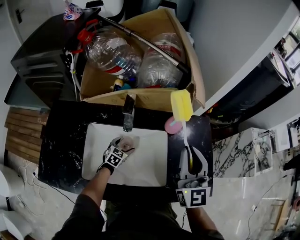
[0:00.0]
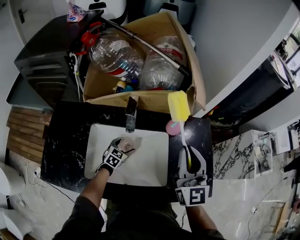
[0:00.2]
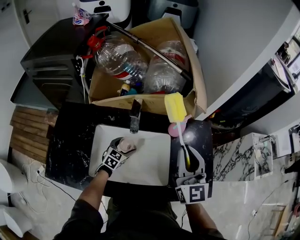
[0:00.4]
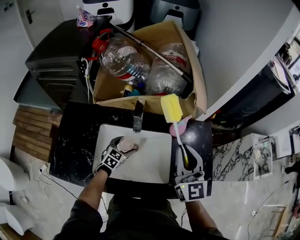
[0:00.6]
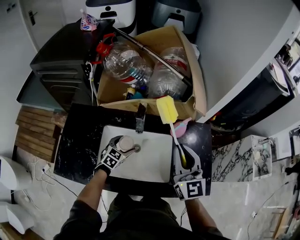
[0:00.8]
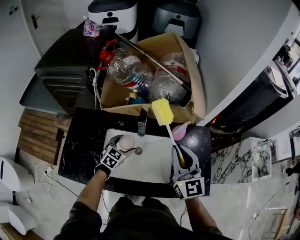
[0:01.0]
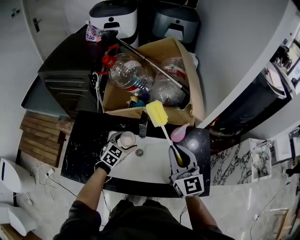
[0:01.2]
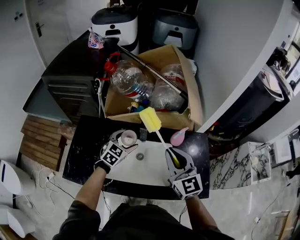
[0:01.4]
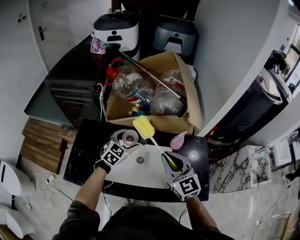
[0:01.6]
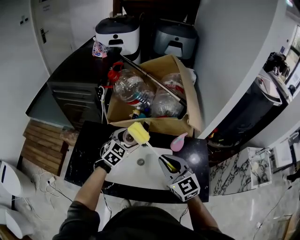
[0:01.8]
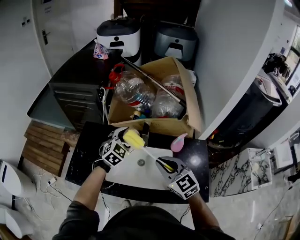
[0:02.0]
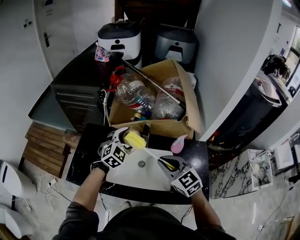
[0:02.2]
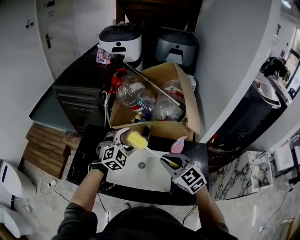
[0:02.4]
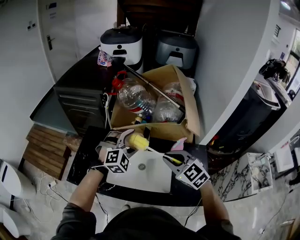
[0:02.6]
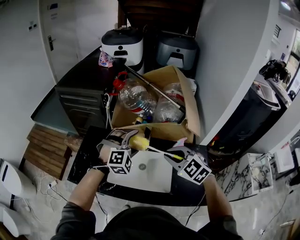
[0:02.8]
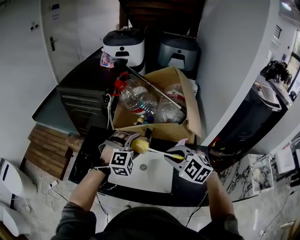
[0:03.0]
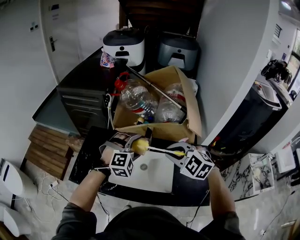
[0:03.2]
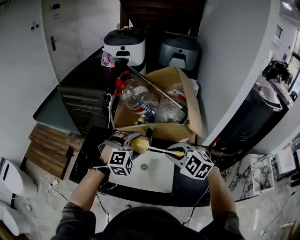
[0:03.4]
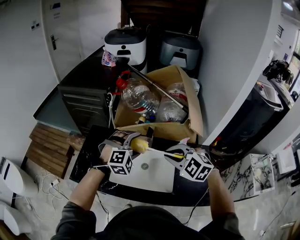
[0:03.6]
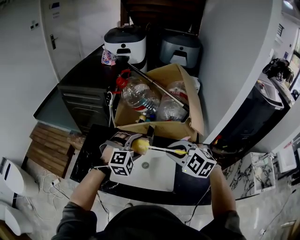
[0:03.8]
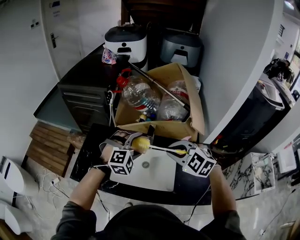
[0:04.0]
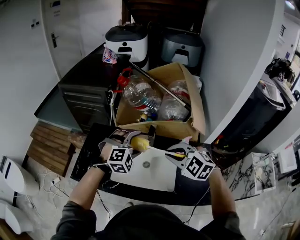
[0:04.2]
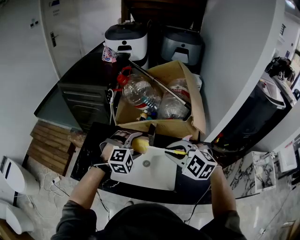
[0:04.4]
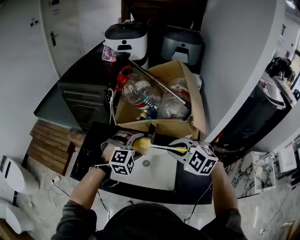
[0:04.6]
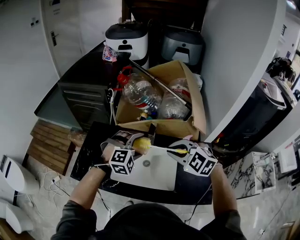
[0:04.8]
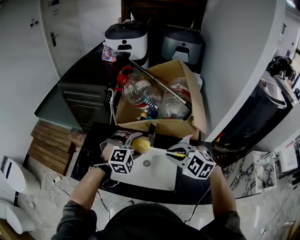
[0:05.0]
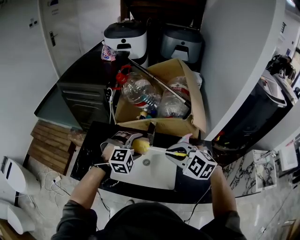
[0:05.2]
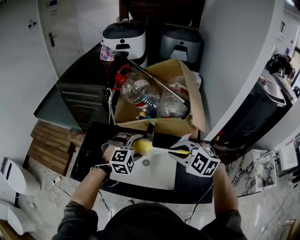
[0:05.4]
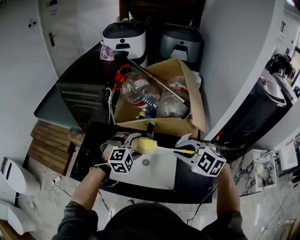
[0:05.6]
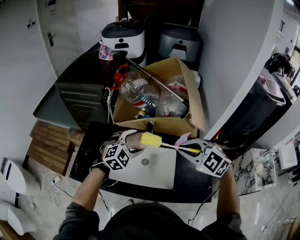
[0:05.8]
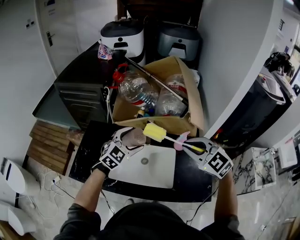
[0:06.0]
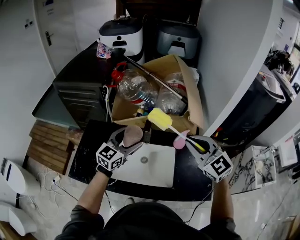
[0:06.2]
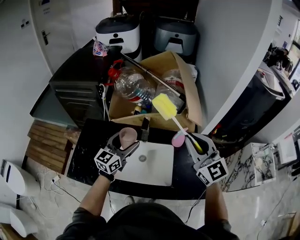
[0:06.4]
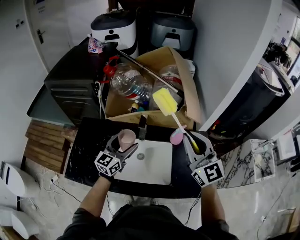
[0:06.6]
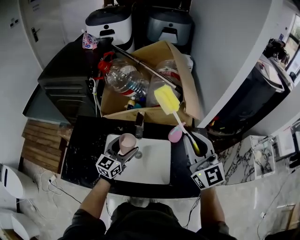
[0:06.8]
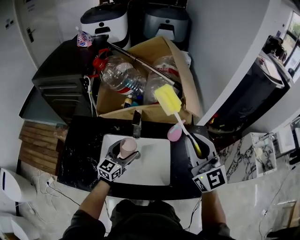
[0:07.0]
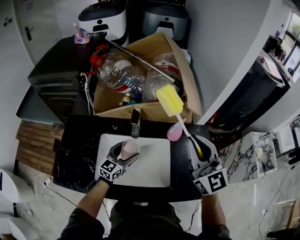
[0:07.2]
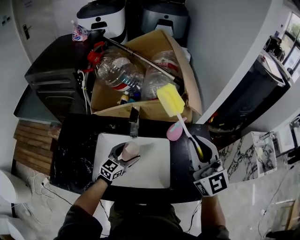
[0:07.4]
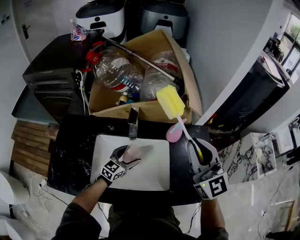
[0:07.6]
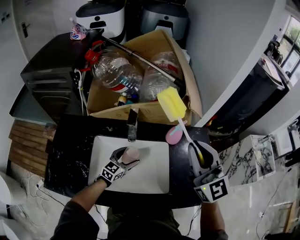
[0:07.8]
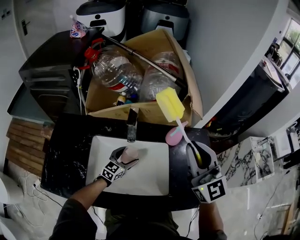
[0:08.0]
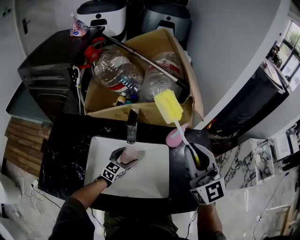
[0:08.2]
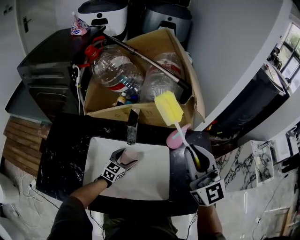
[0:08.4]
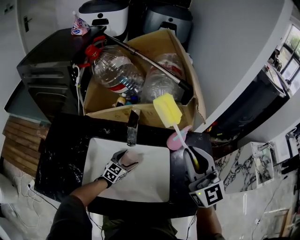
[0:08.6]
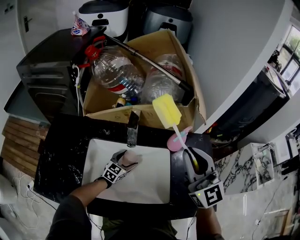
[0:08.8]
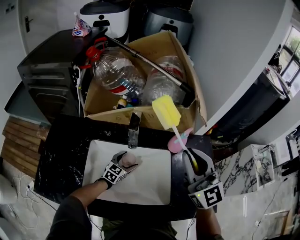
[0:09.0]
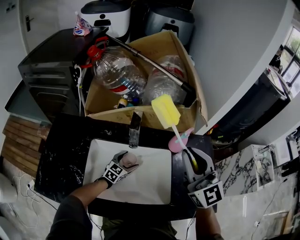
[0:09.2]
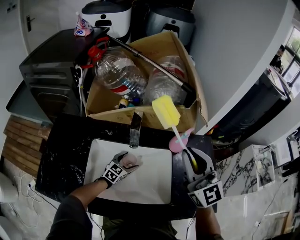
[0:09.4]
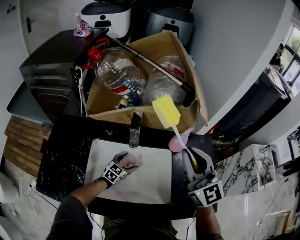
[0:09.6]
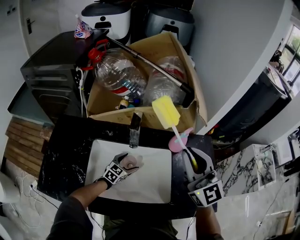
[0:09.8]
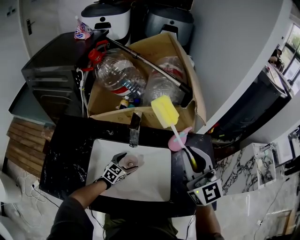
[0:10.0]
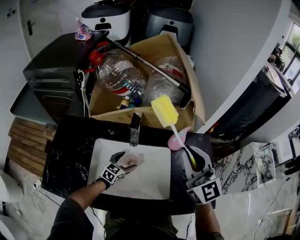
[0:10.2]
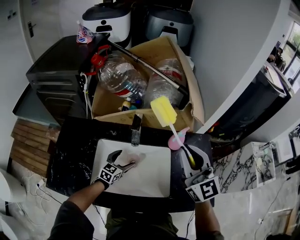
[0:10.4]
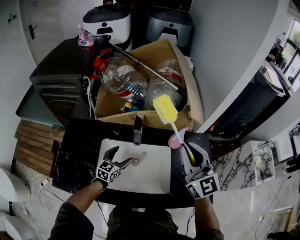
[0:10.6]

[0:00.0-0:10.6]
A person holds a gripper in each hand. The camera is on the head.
0:00.0 to 0:01.6: The left gripper shifts roughly 35 cm upward. Meanwhile the right gripper travels to the left and upward by some 15 cm, and changes its angle by approximately 30 degrees.
0:01.6 to 0:03.0: The left gripper shifts approximately 10 cm upward and backward, and rolls clockwise, seen from behind, by roughly 50 degrees; the right gripper swivels about 40 degrees.
0:03.0 to 0:04.6: The grippers make only small movements.
0:04.6 to 0:06.0: The left gripper turns by approximately 40 degrees. Meanwhile the right gripper goes about 5 cm to the right.
0:06.0 to 0:07.6: The right gripper moves some 5 cm, and angles its fingers upward, by roughly 30 degrees. Meanwhile the left gripper is displaced downward by approximately 25 cm, and turns by about 30 degrees.
0:07.6 to 0:09.0: The right gripper heads downward, covering roughly 5 cm; the left gripper is displaced downward and forward by roughly 15 cm.
0:09.0 to 0:10.6: The left gripper shifts roughly 15 cm upward and to the left. Meanwhile the right gripper shifts about 5 cm upward.

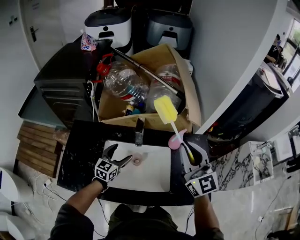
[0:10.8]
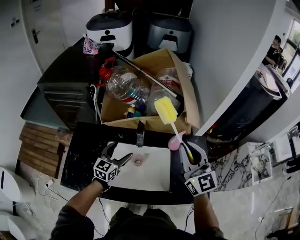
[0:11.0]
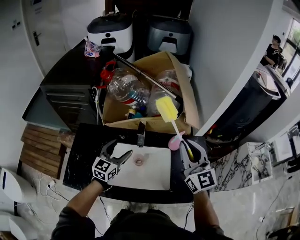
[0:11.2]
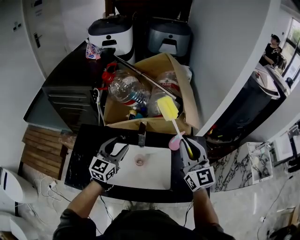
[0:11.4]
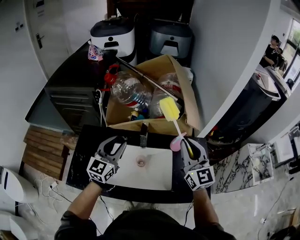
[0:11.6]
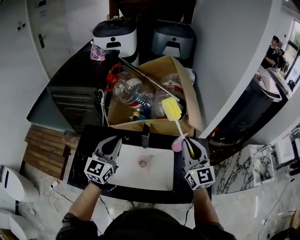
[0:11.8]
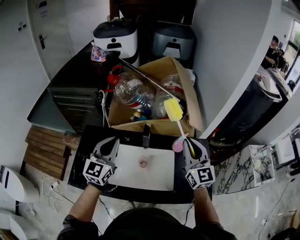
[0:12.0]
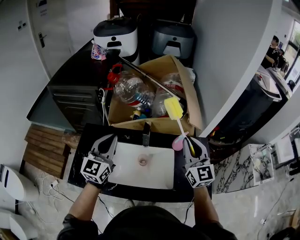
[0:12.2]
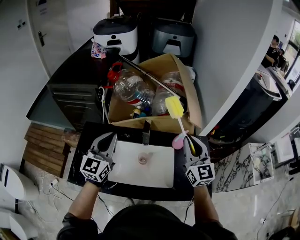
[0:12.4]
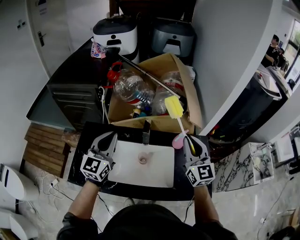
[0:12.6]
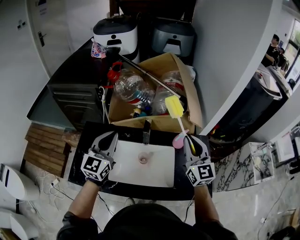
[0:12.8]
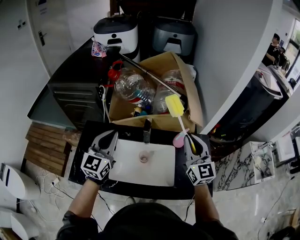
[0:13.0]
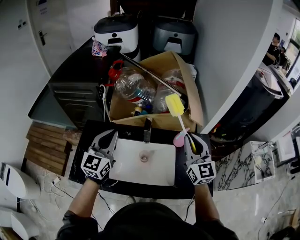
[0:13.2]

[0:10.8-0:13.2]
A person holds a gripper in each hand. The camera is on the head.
0:10.8 to 0:12.0: The left gripper shifts approximately 25 cm upward, turns by some 20 degrees, and closes up.
0:12.0 to 0:13.2: Both grippers stay put.

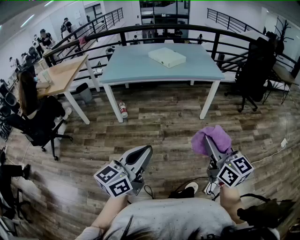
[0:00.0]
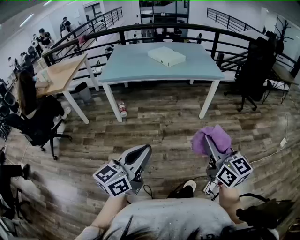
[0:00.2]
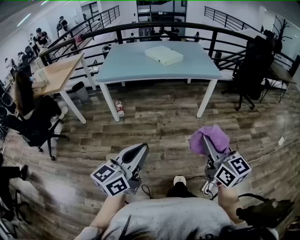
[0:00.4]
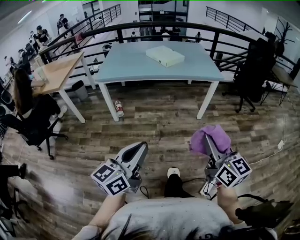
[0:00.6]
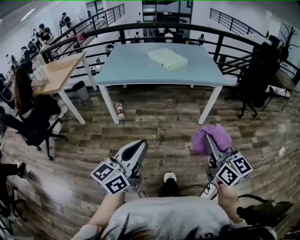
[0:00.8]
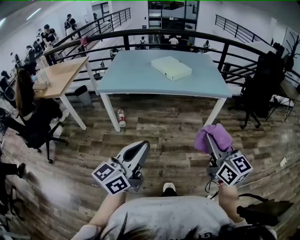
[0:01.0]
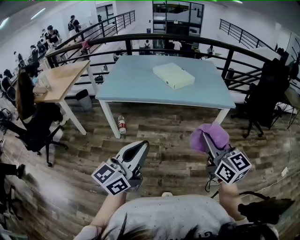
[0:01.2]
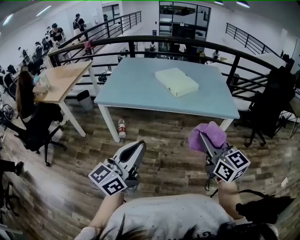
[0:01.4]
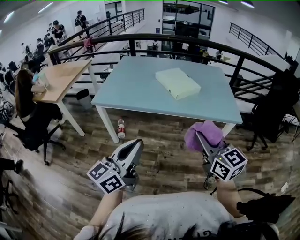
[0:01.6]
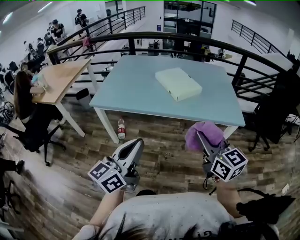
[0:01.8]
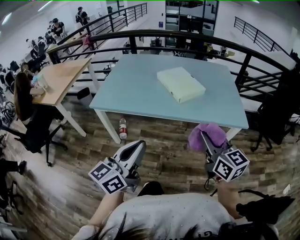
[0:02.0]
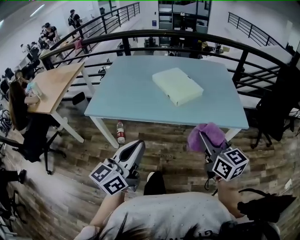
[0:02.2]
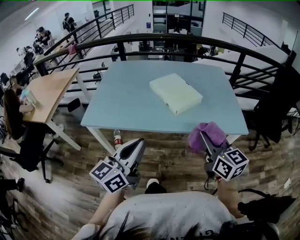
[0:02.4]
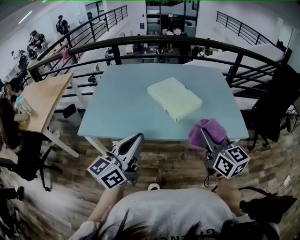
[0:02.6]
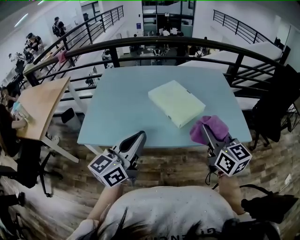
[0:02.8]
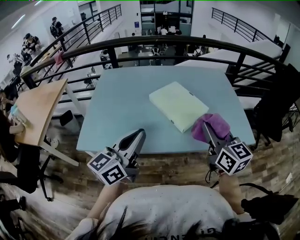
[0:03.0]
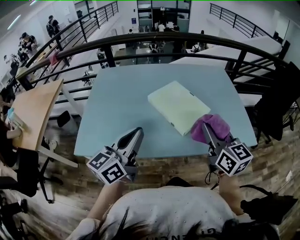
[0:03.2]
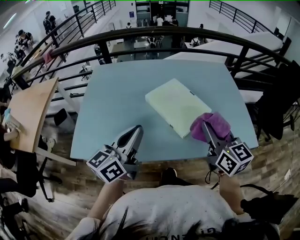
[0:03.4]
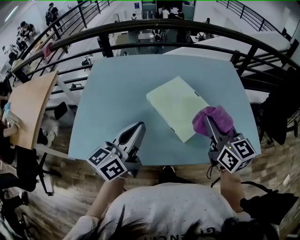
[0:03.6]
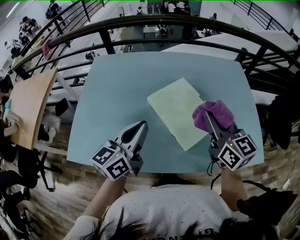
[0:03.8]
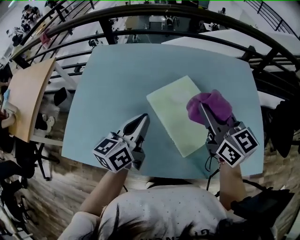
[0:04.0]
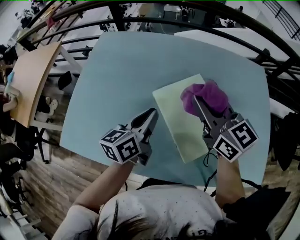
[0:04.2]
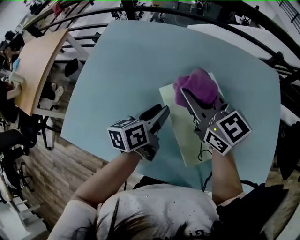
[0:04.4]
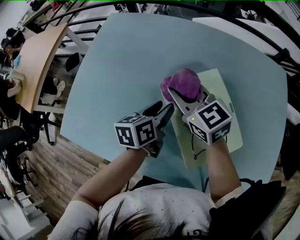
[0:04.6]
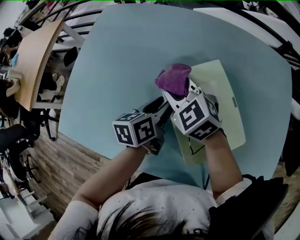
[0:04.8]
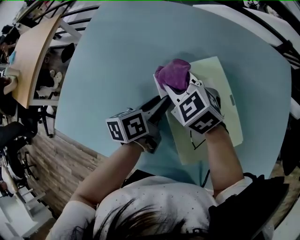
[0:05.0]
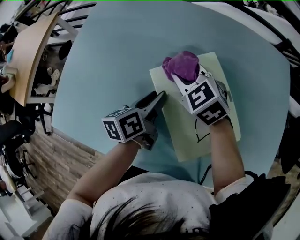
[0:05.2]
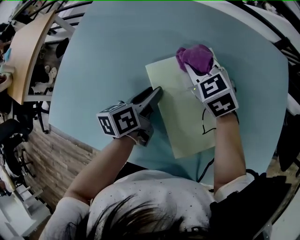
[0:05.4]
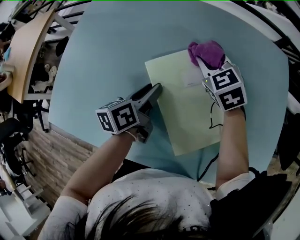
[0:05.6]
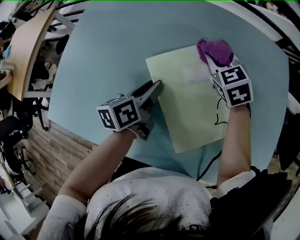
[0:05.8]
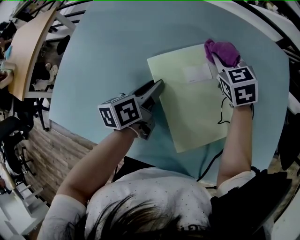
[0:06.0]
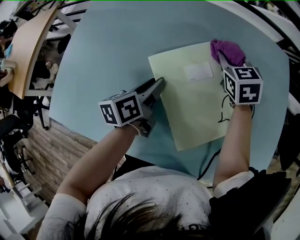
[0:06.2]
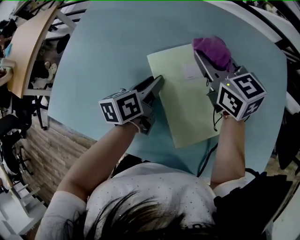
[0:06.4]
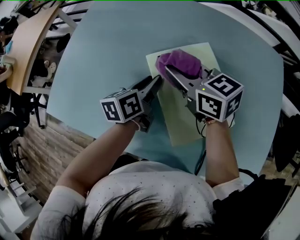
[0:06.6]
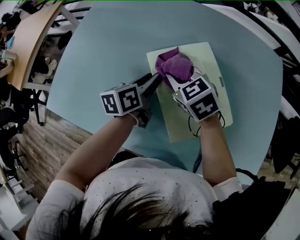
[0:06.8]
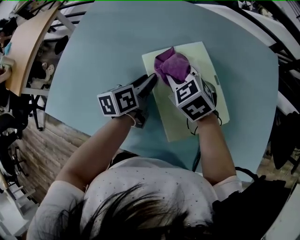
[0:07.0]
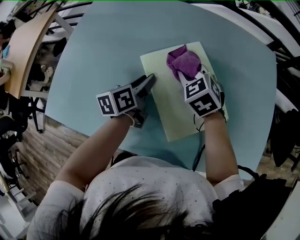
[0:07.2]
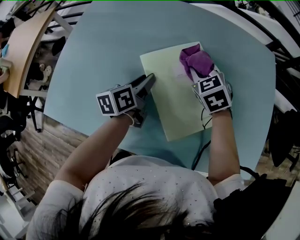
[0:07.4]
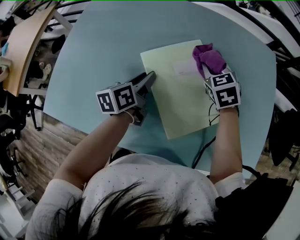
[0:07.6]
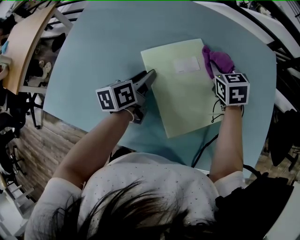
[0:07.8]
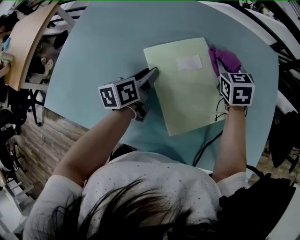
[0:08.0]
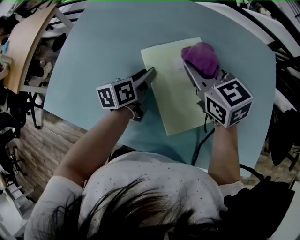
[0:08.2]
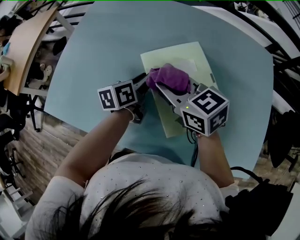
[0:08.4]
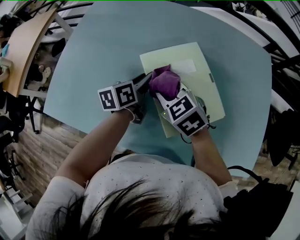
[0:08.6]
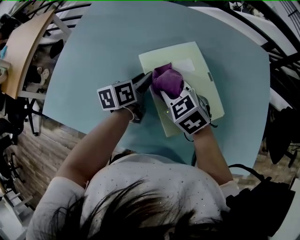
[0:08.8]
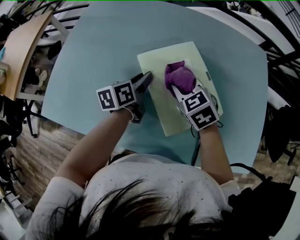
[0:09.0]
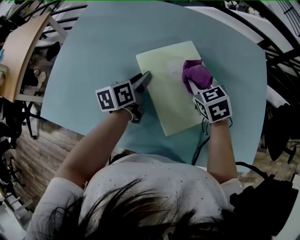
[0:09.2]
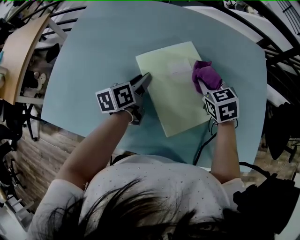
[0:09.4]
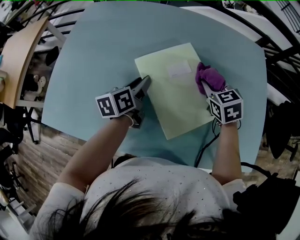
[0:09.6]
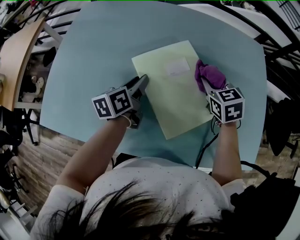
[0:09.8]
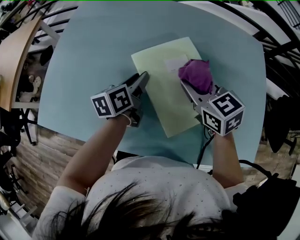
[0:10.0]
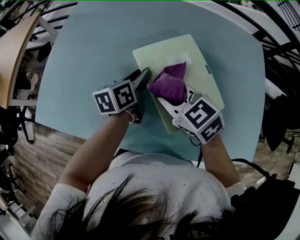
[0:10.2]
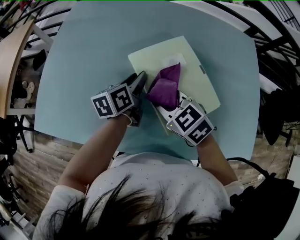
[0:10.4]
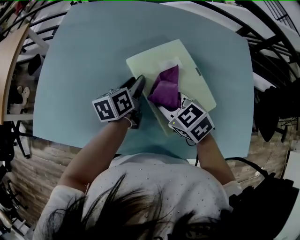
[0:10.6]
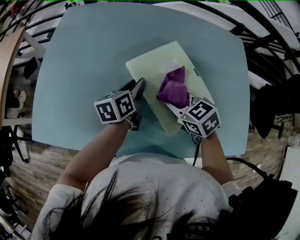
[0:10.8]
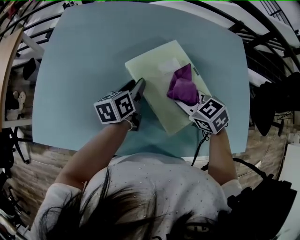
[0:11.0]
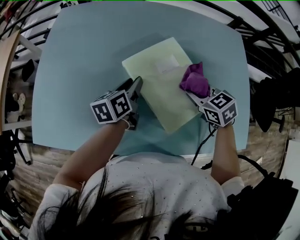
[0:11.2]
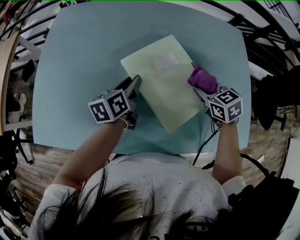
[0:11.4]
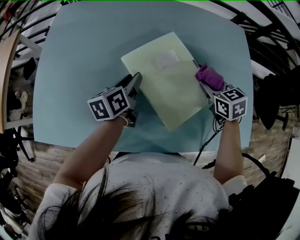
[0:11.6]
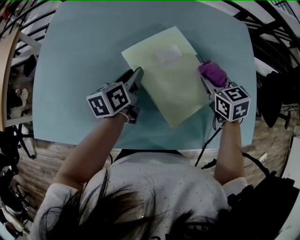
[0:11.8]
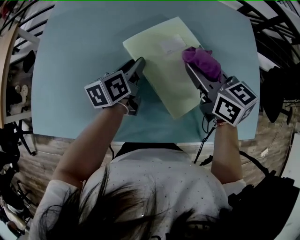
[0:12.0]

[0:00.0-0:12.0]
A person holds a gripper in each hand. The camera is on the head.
0:00.0 to 0:01.6: The two grippers go some 40 cm forward.
0:01.6 to 0:03.0: The grippers both shift forward by roughly 35 cm.
0:03.0 to 0:04.4: The right gripper heads forward and to the left, covering roughly 35 cm, and rotates roughly 30 degrees; the left gripper is displaced forward and downward by some 40 cm, changes its angle by about 40 degrees, and opens.
0:04.4 to 0:06.0: The left gripper travels downward by some 5 cm. The right gripper goes approximately 25 cm downward, to the right and forward, and tips its fingers downward by approximately 30 degrees.
0:06.0 to 0:07.6: The right gripper goes approximately 5 cm backward, and moves about 15 cm to the left and comes back.
0:07.6 to 0:09.0: The right gripper moves left and right over some 20 cm, changing direction 2 times.
0:09.0 to 0:10.4: The right gripper goes approximately 5 cm backward, and moves approximately 10 cm to the right and comes back.
0:10.4 to 0:12.0: The right gripper moves to the right and upward, some 10 cm, and turns by approximately 40 degrees.
